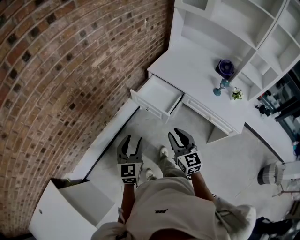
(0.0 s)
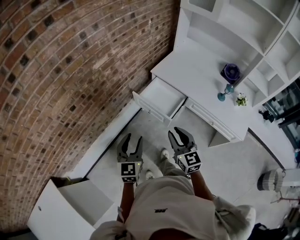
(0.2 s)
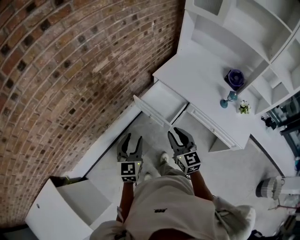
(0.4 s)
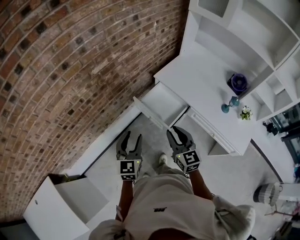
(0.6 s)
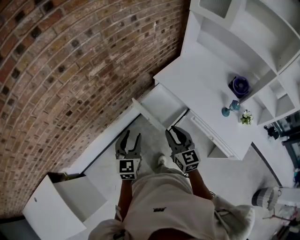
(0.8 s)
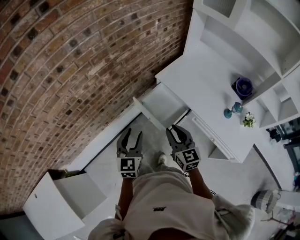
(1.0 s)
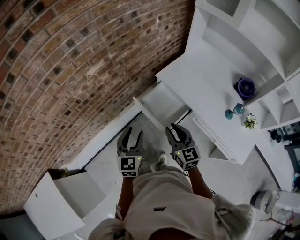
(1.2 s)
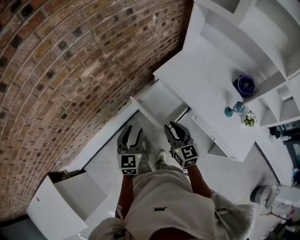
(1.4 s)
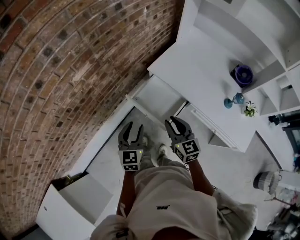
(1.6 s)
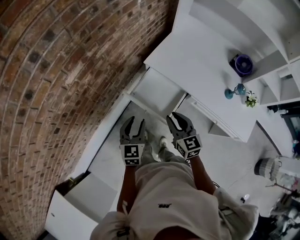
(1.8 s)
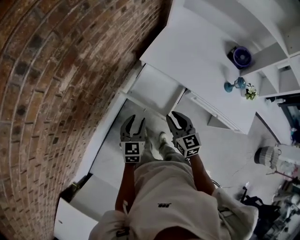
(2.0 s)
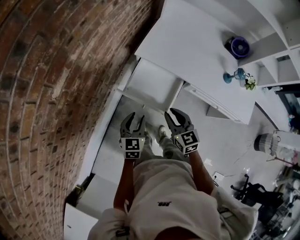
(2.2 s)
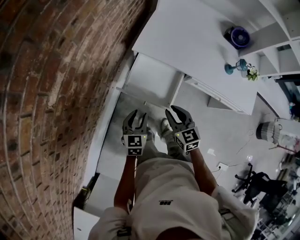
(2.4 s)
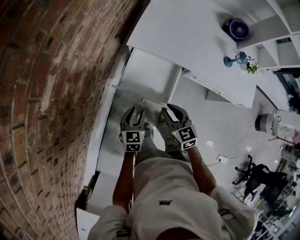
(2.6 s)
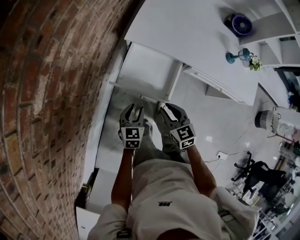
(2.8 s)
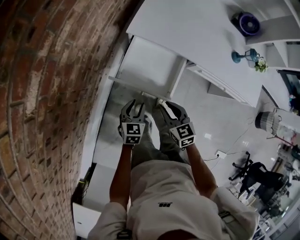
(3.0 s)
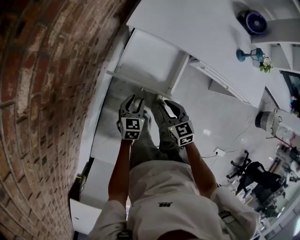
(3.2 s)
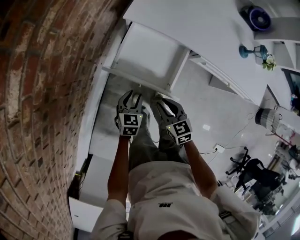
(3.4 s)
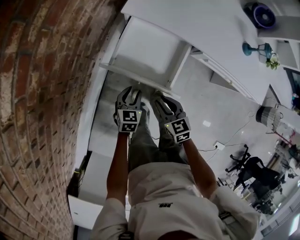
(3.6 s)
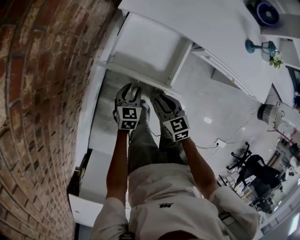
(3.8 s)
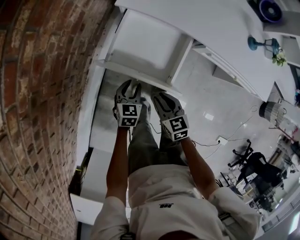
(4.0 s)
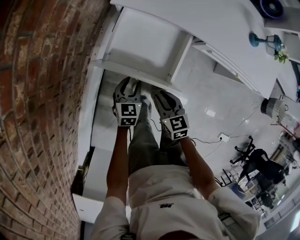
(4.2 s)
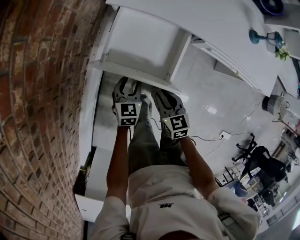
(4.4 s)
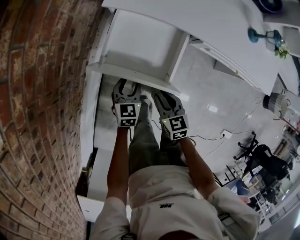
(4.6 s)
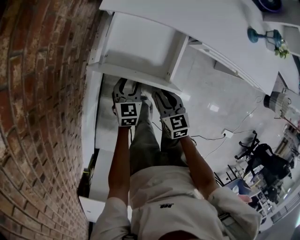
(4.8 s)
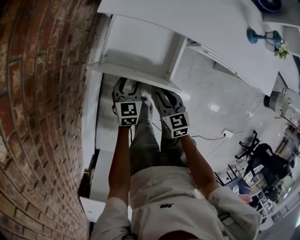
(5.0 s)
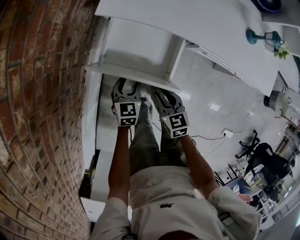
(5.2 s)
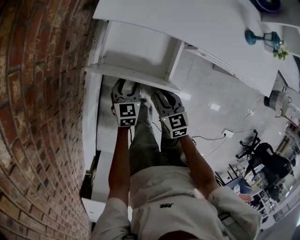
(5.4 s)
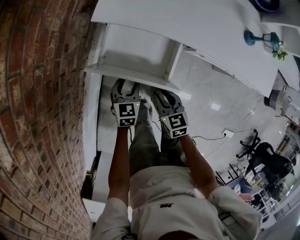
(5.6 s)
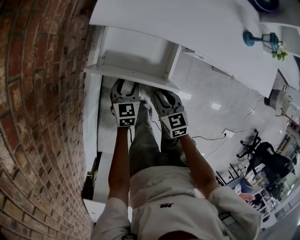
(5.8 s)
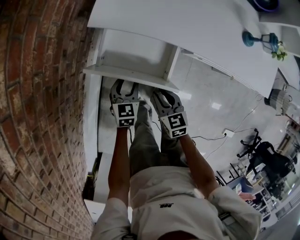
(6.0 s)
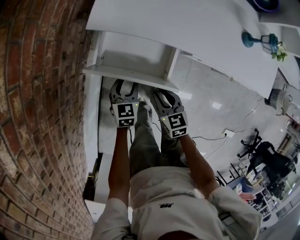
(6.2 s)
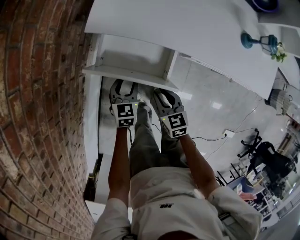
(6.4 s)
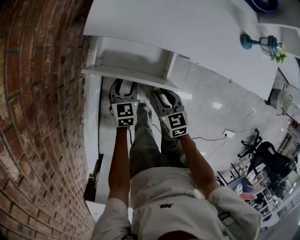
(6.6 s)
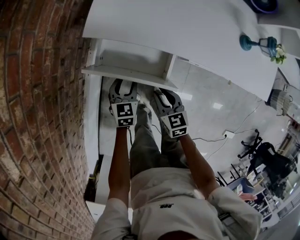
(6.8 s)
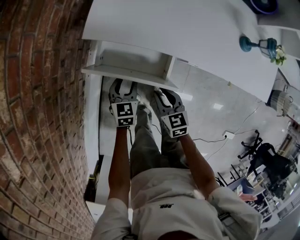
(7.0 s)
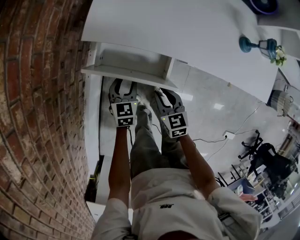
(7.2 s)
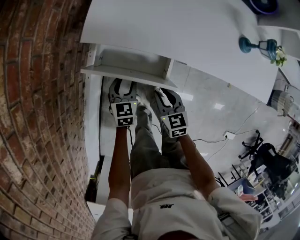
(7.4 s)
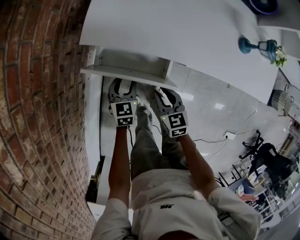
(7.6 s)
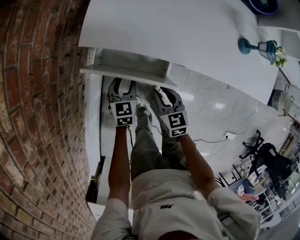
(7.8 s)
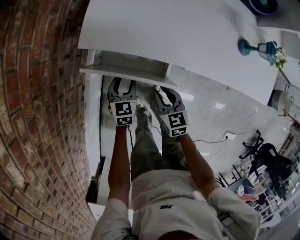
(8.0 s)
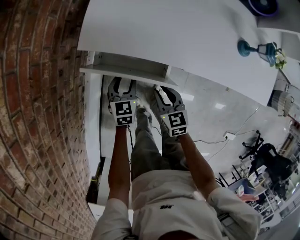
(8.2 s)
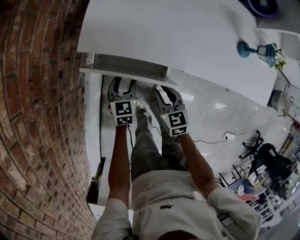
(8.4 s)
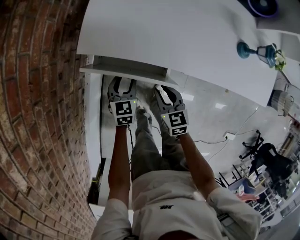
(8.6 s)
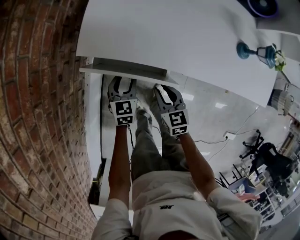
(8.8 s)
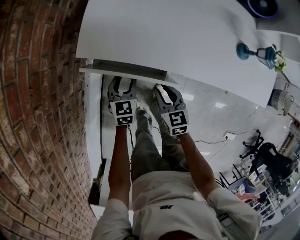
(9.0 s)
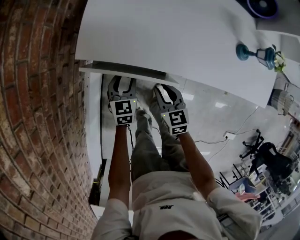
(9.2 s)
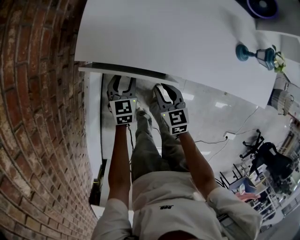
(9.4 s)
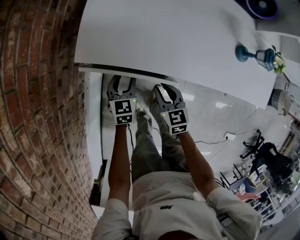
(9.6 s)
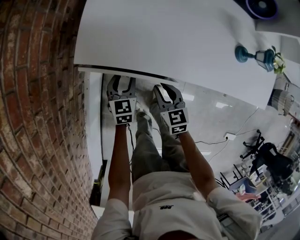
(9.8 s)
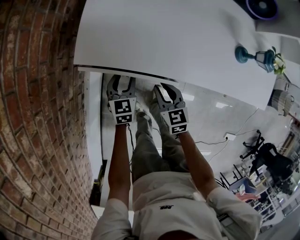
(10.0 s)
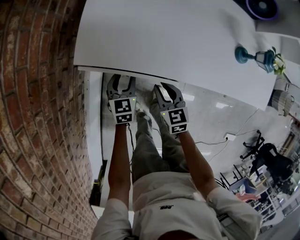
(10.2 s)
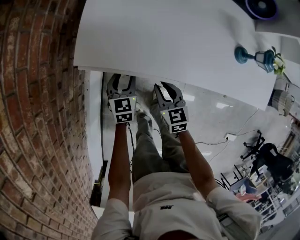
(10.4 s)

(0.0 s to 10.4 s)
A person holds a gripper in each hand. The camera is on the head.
0.0 s - 1.4 s: The left gripper heads forward and to the right, covering approximately 20 cm. The right gripper moves forward, some 20 cm.
1.4 s - 3.0 s: The two grippers go roughly 25 cm downward. The right gripper rotates about 30 degrees; the left gripper changes its angle by roughly 40 degrees.
3.0 s - 4.4 s: Both grippers travel together downward, roughly 10 cm.
4.4 s - 6.0 s: The grippers both shift forward by some 10 cm.
6.0 s - 7.4 s: The two grippers go approximately 5 cm forward.
7.4 s - 9.0 s: Both grippers move forward, some 5 cm.
9.0 s - 10.4 s: There are only small adjustments of the grippers.

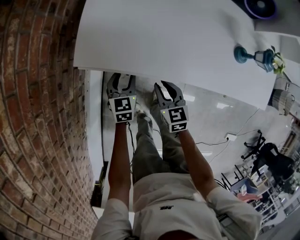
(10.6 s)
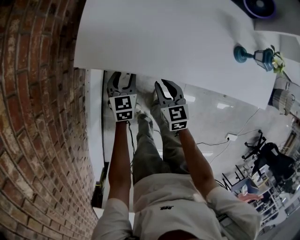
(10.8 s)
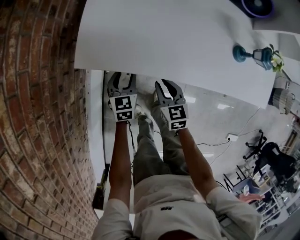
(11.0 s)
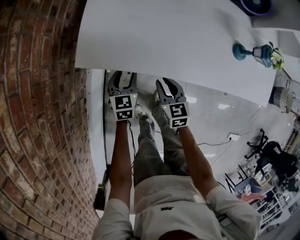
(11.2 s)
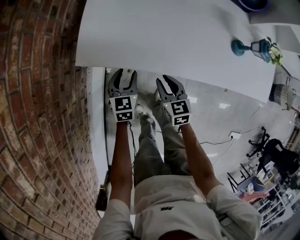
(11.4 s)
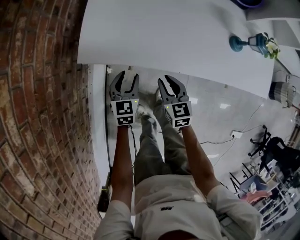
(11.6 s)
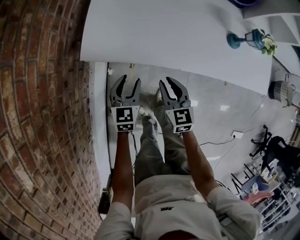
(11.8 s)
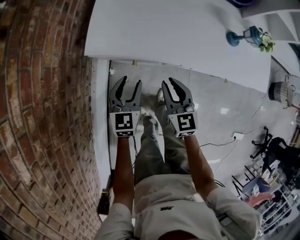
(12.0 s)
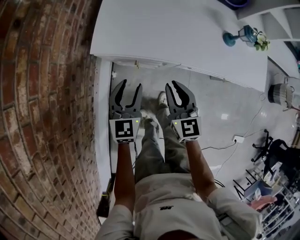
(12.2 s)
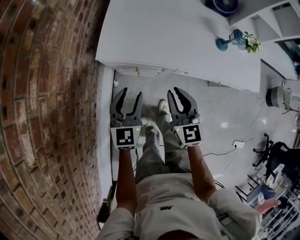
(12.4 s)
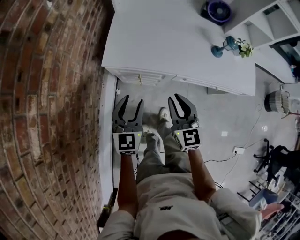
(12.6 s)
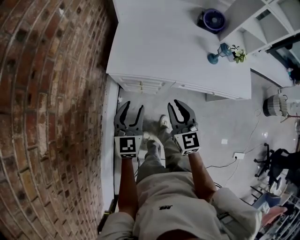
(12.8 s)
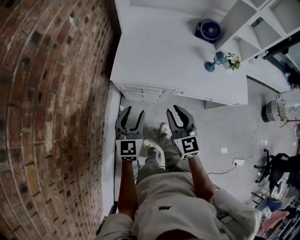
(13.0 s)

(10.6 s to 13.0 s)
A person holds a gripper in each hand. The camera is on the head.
10.6 s - 11.8 s: The left gripper goes about 10 cm upward and backward, while the right gripper shifts about 5 cm upward.
11.8 s - 13.0 s: Both grippers travel together upward and backward, about 25 cm.

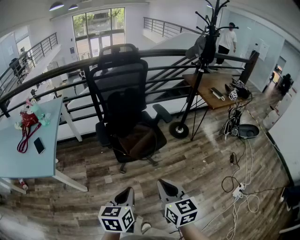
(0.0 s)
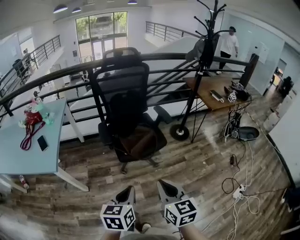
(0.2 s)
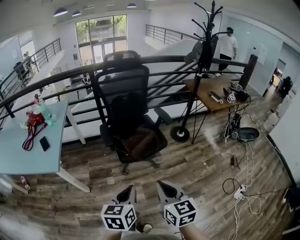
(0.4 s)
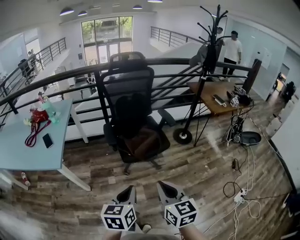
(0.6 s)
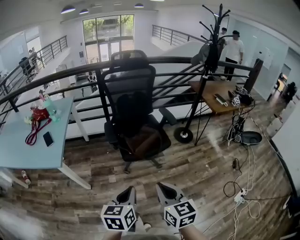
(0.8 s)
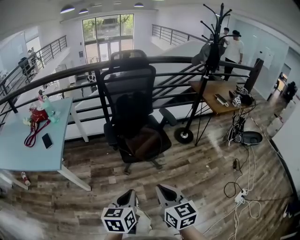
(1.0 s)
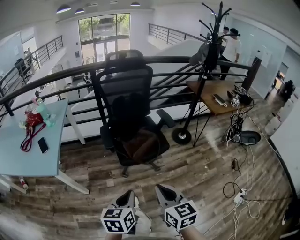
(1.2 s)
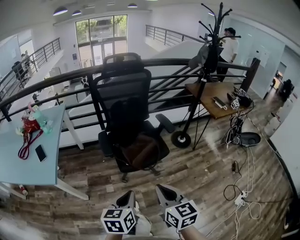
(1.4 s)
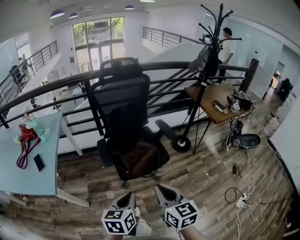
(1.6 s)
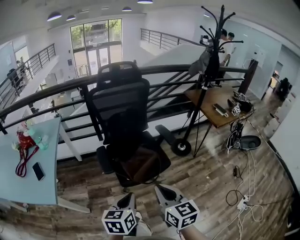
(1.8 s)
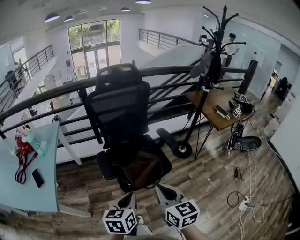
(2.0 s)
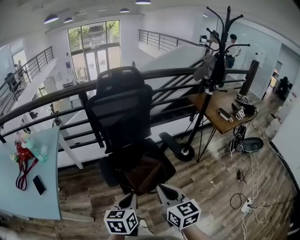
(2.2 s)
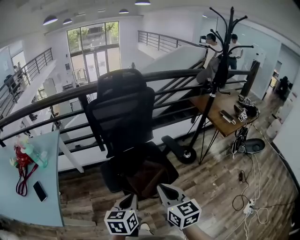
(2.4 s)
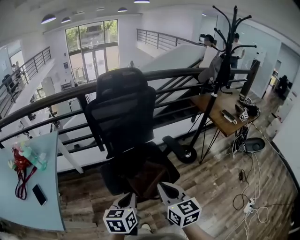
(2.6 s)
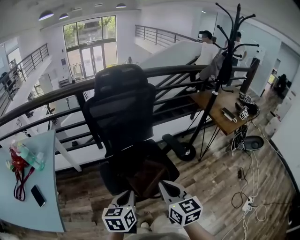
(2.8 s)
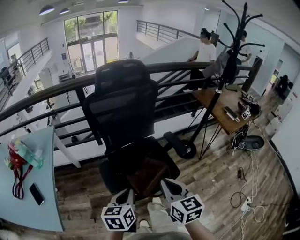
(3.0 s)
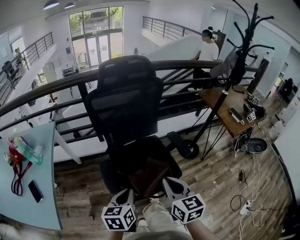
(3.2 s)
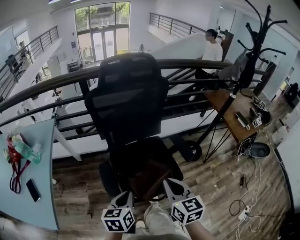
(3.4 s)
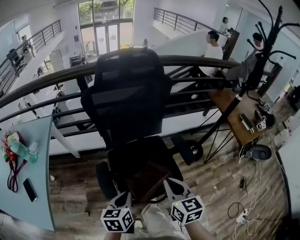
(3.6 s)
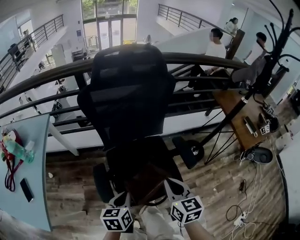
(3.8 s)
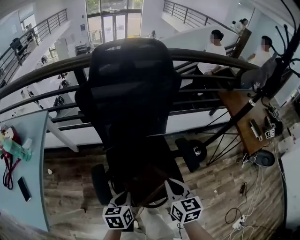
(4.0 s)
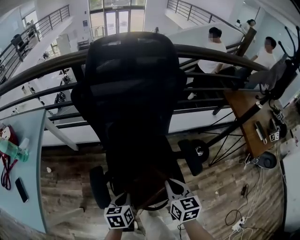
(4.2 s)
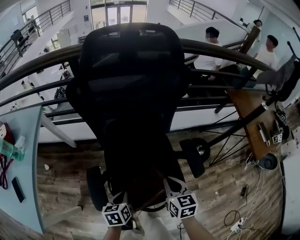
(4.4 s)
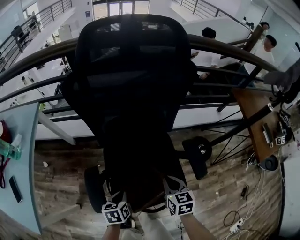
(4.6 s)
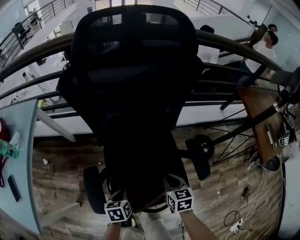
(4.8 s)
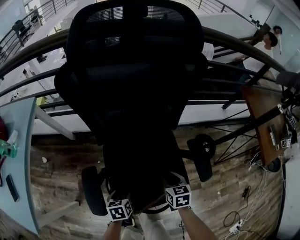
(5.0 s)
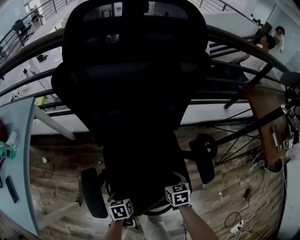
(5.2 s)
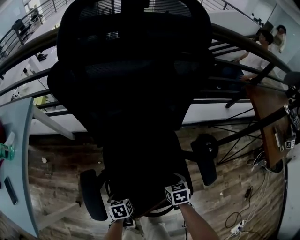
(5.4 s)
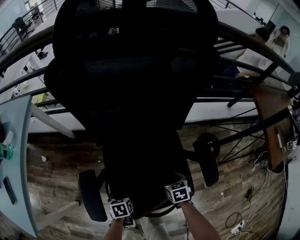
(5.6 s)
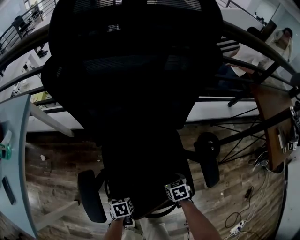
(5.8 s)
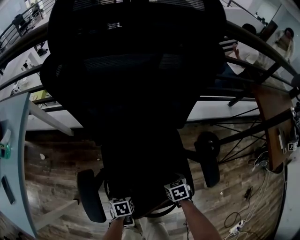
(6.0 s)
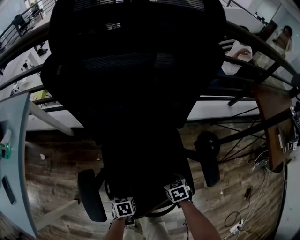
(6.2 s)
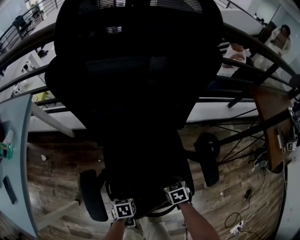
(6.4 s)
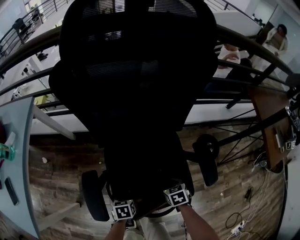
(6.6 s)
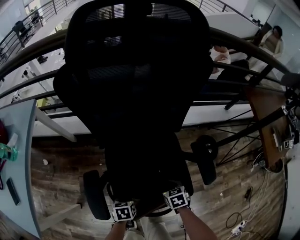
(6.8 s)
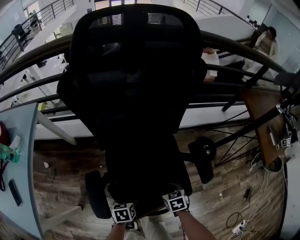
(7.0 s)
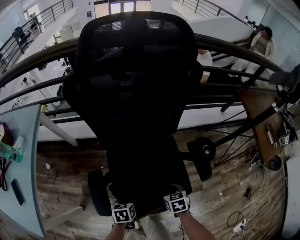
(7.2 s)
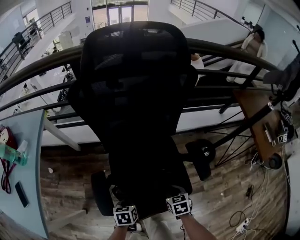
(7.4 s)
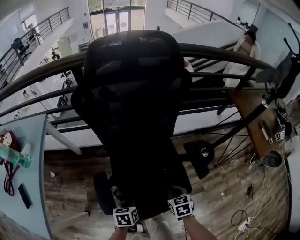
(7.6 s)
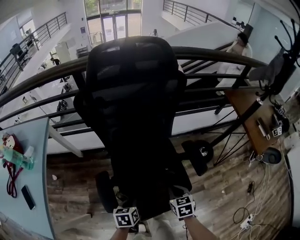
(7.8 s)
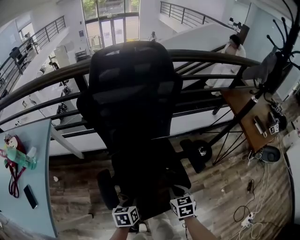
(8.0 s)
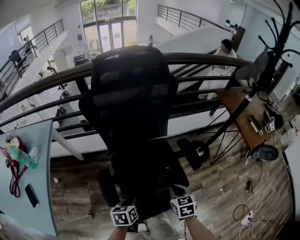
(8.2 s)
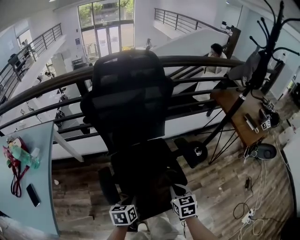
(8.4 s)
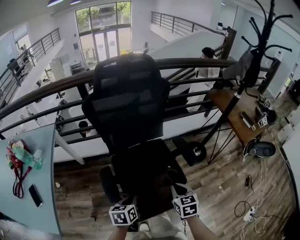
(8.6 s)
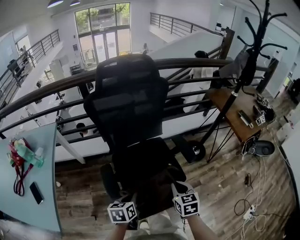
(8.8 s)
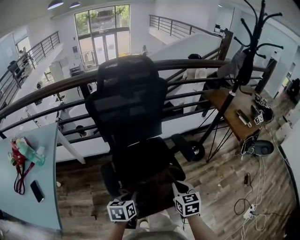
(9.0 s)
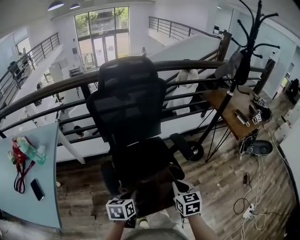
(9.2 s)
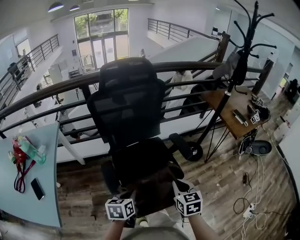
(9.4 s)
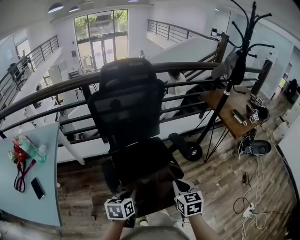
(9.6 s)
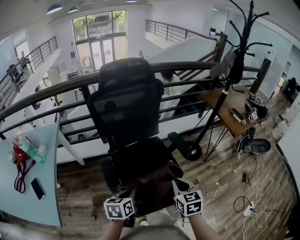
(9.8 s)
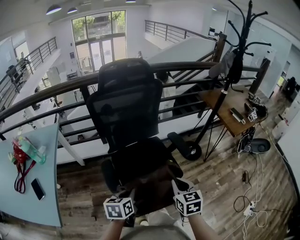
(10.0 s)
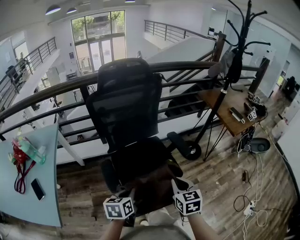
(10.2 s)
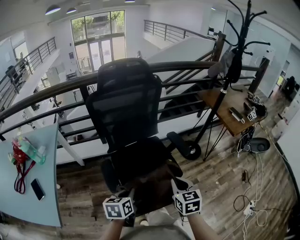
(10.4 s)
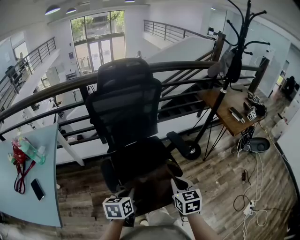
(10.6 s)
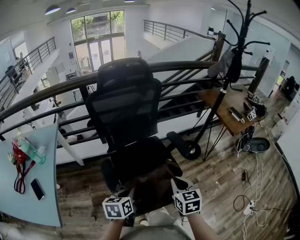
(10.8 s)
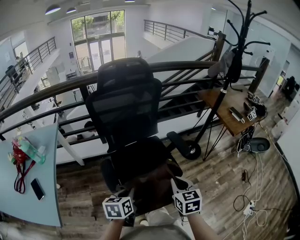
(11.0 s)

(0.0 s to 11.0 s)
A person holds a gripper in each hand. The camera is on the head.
0.0 s - 1.6 s: Both grippers move forward, roughly 10 cm.
1.6 s - 3.2 s: The grippers both shift forward by some 25 cm.
3.2 s - 4.8 s: Both grippers travel together downward and forward, approximately 35 cm. The right gripper changes its angle by some 20 degrees. Meanwhile the left gripper rotates approximately 30 degrees.
4.8 s - 6.2 s: Both grippers move downward, approximately 15 cm. The right gripper turns by about 30 degrees, and opens, while the left gripper opens up.
6.2 s - 7.8 s: The left gripper moves upward, about 20 cm, changes its angle by some 20 degrees, and closes. The right gripper shifts some 20 cm upward and backward, and changes its angle by some 20 degrees.
7.8 s - 9.4 s: Both grippers travel together upward and backward, roughly 20 cm.
9.4 s - 11.0 s: The grippers stay close to where they were, moving slightly.
